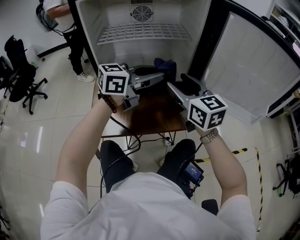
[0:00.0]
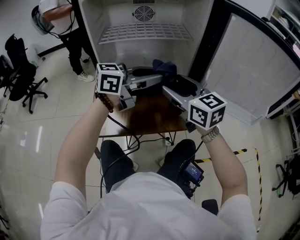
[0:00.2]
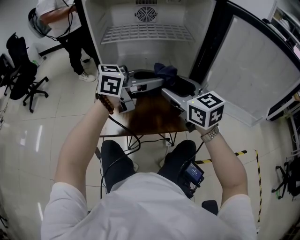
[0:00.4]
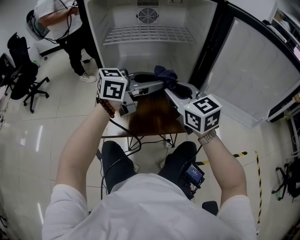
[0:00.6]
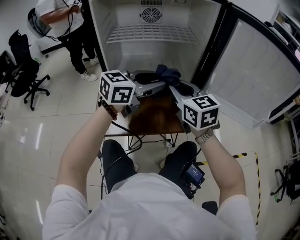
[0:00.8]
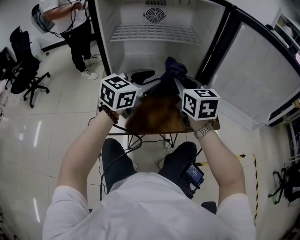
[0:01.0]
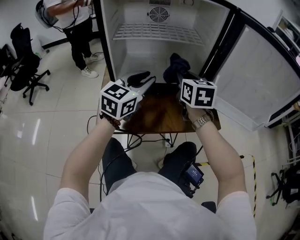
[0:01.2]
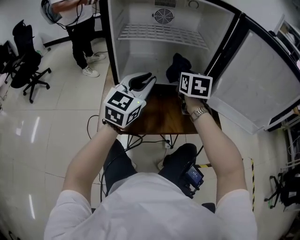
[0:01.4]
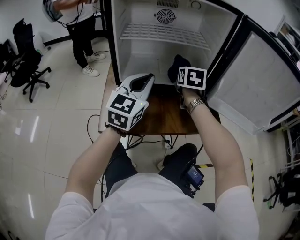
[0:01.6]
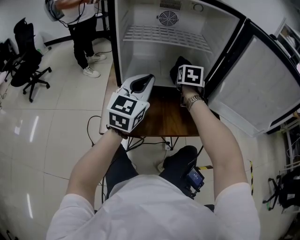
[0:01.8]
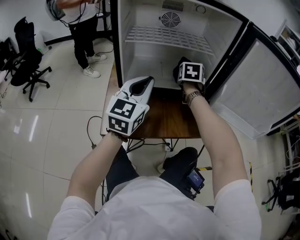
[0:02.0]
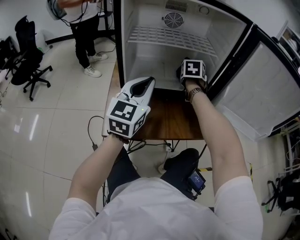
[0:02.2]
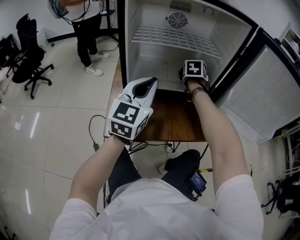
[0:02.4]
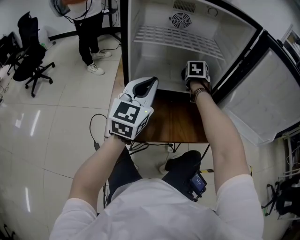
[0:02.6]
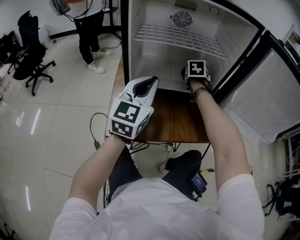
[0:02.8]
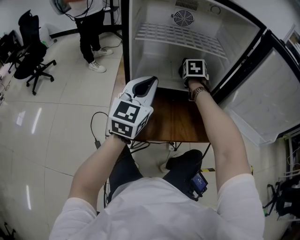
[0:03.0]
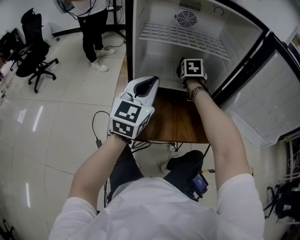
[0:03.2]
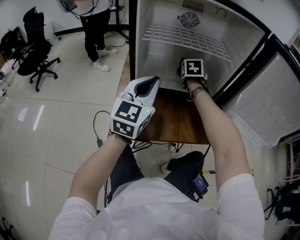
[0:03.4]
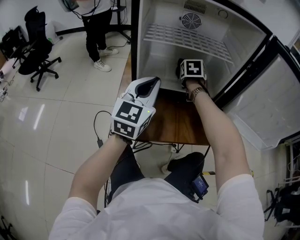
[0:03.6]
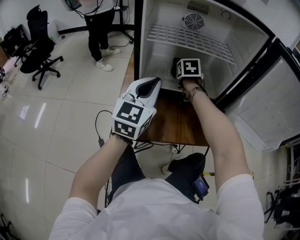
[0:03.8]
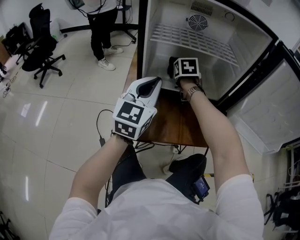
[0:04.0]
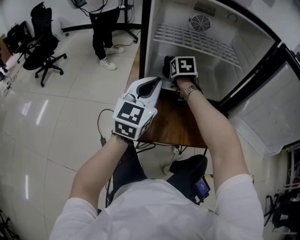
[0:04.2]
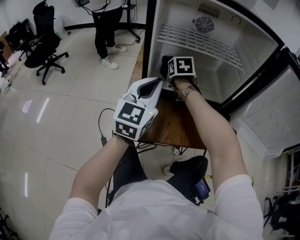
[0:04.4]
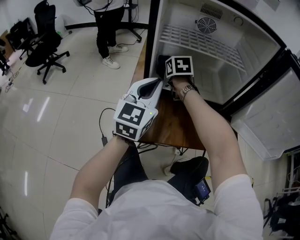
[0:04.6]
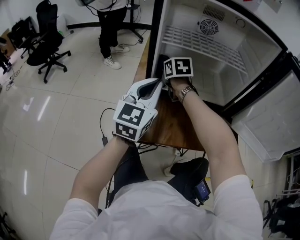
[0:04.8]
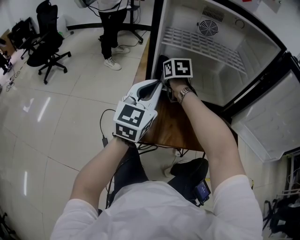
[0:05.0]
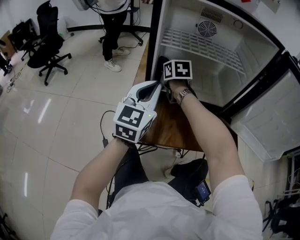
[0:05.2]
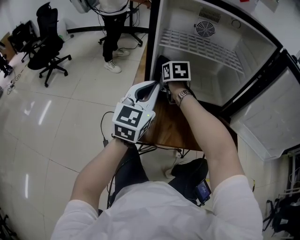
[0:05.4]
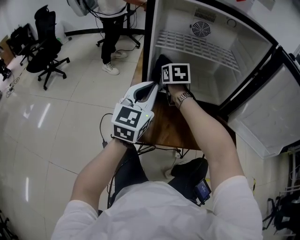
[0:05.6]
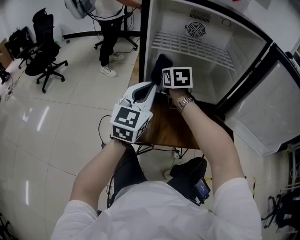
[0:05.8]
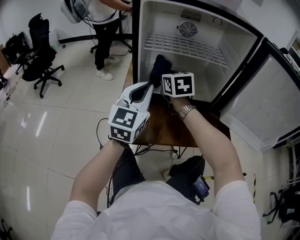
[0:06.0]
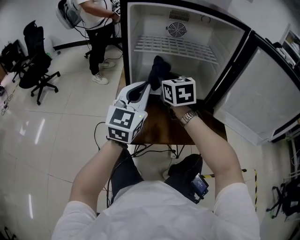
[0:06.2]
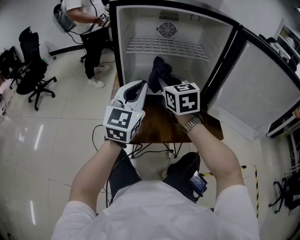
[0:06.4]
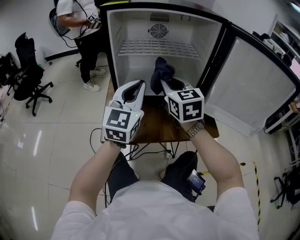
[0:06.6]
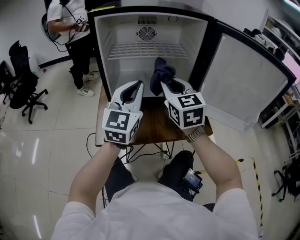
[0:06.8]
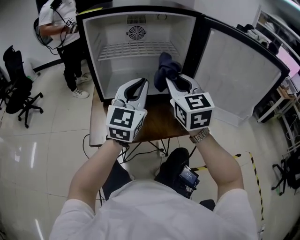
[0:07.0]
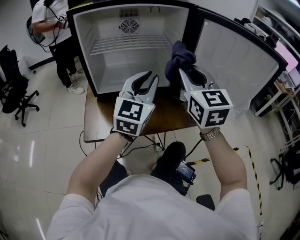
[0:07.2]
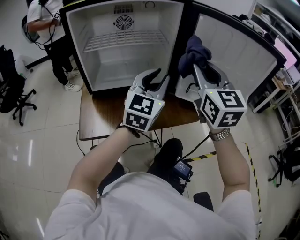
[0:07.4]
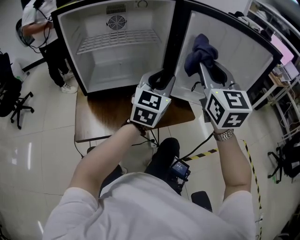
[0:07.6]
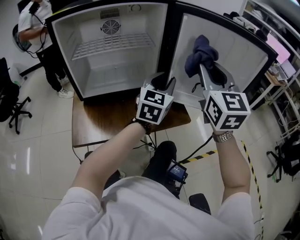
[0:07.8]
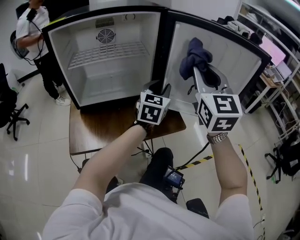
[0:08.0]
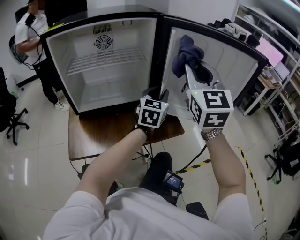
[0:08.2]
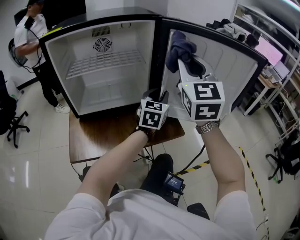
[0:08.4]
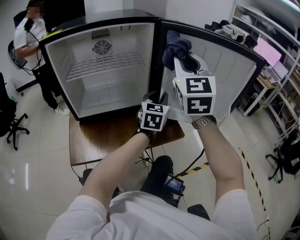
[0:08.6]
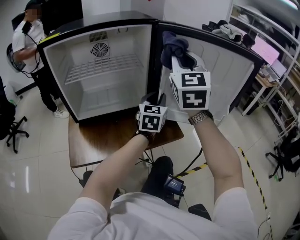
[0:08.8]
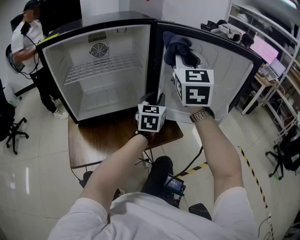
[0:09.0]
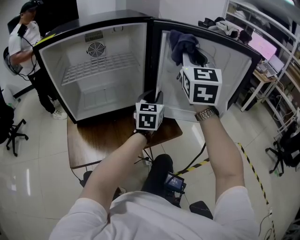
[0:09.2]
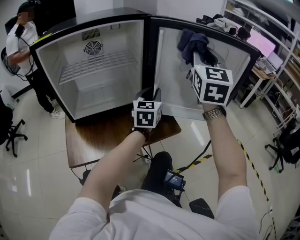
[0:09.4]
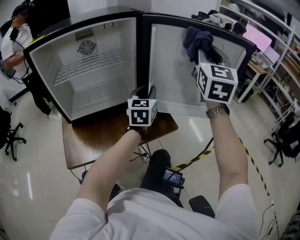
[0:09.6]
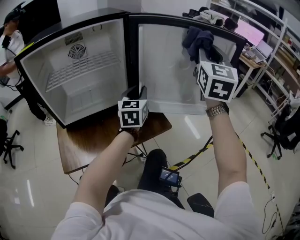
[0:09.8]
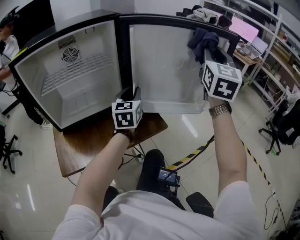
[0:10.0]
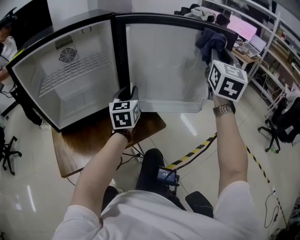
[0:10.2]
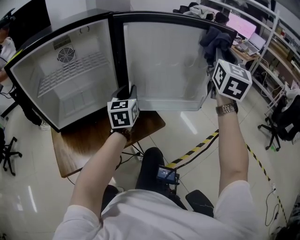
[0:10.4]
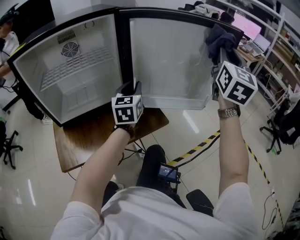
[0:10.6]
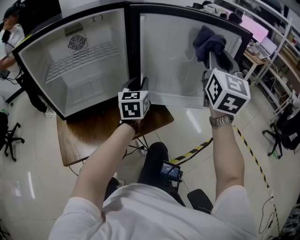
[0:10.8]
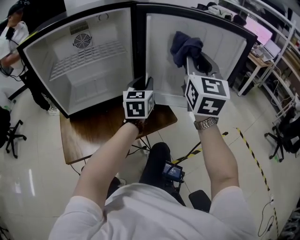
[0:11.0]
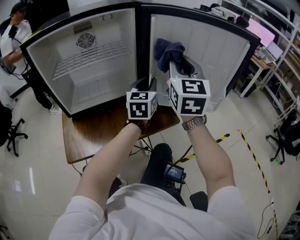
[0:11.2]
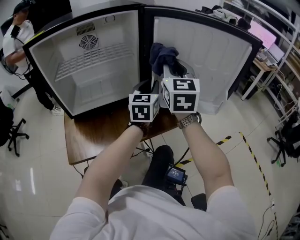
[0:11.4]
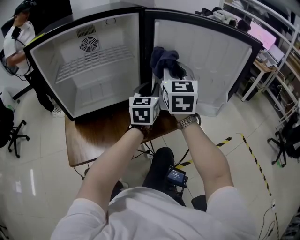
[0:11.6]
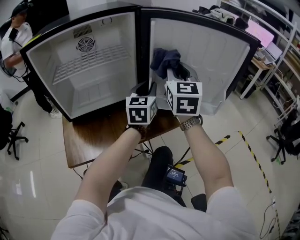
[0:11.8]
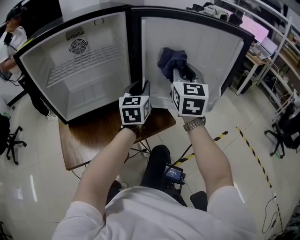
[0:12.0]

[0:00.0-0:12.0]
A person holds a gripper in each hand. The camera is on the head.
0:00.0 to 0:01.6: The right gripper travels forward and downward by about 15 cm, swivels some 30 degrees, and closes up. The left gripper is displaced to the left by some 10 cm, rotates approximately 50 degrees, and opens, then closes again.
0:01.6 to 0:03.0: The right gripper moves forward, about 10 cm.
0:03.0 to 0:04.4: The right gripper is displaced to the left by some 15 cm.
0:04.4 to 0:06.0: The right gripper travels backward and upward by roughly 10 cm.
0:06.0 to 0:07.6: The left gripper is displaced to the right by roughly 30 cm, turns by roughly 20 degrees, and opens; the right gripper moves to the right, upward and backward, roughly 40 cm, and rotates some 40 degrees.
0:07.6 to 0:09.0: The right gripper goes approximately 10 cm forward and upward; the left gripper travels forward by roughly 10 cm.
0:09.0 to 0:10.4: The right gripper heads to the right, covering some 25 cm, and changes its angle by about 30 degrees.
0:10.4 to 0:12.0: The right gripper travels to the left and downward by approximately 20 cm, and changes its angle by roughly 20 degrees.

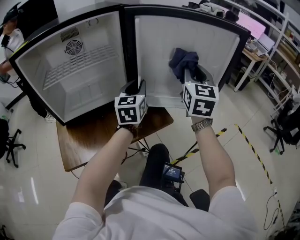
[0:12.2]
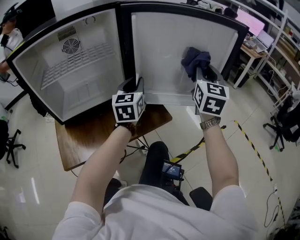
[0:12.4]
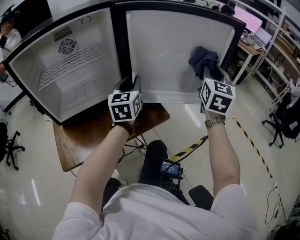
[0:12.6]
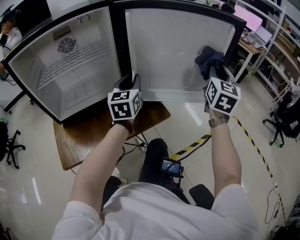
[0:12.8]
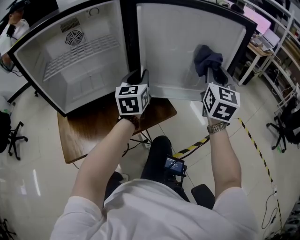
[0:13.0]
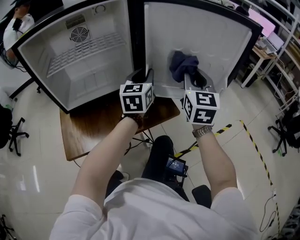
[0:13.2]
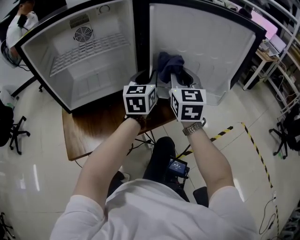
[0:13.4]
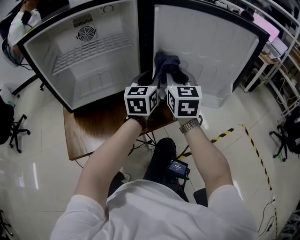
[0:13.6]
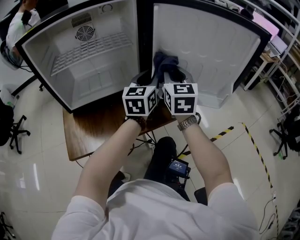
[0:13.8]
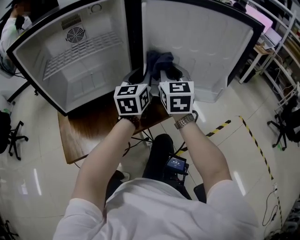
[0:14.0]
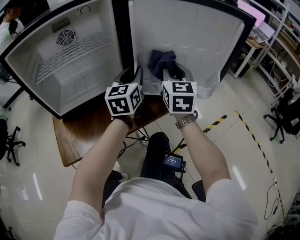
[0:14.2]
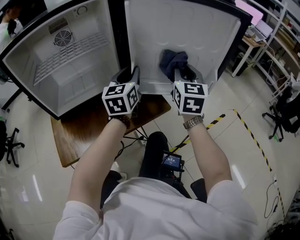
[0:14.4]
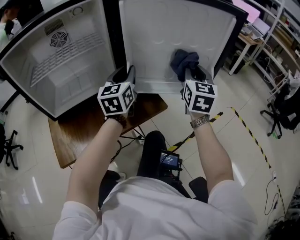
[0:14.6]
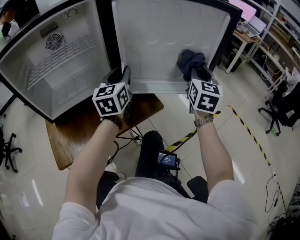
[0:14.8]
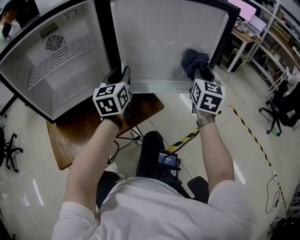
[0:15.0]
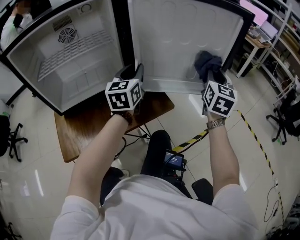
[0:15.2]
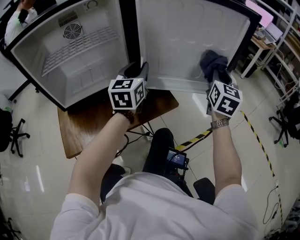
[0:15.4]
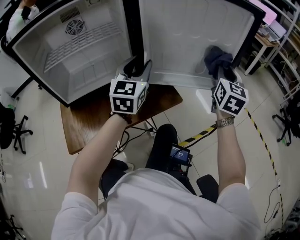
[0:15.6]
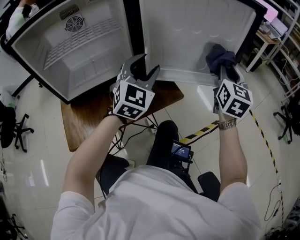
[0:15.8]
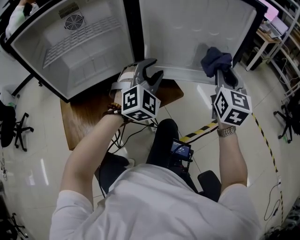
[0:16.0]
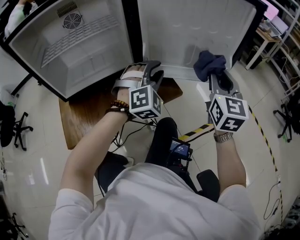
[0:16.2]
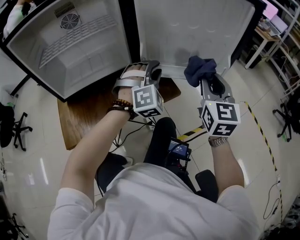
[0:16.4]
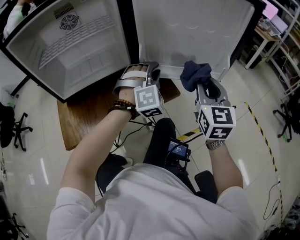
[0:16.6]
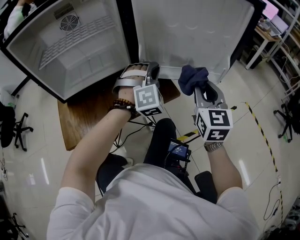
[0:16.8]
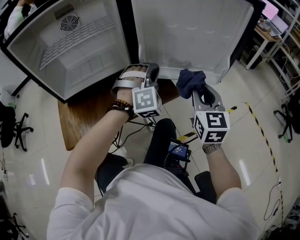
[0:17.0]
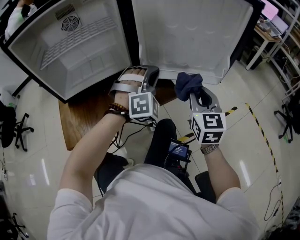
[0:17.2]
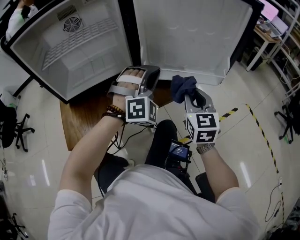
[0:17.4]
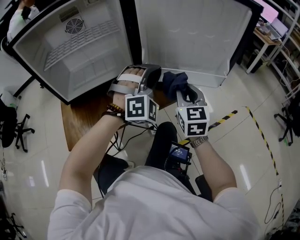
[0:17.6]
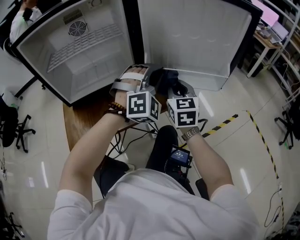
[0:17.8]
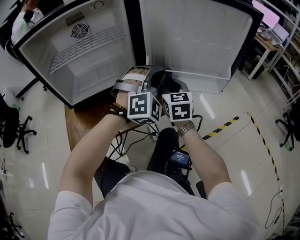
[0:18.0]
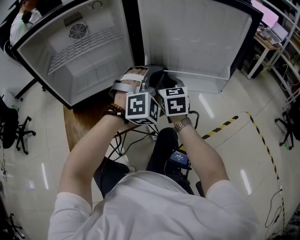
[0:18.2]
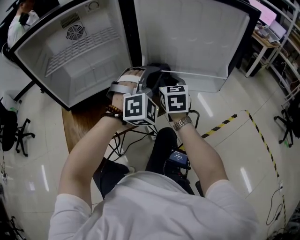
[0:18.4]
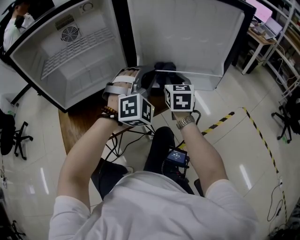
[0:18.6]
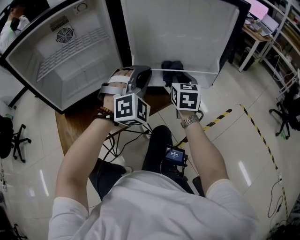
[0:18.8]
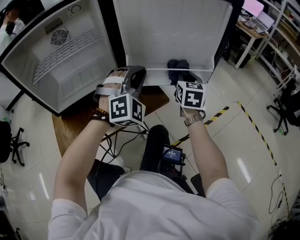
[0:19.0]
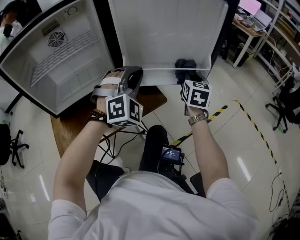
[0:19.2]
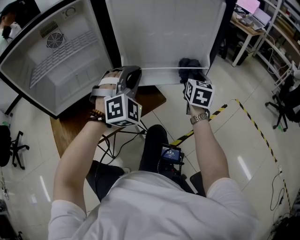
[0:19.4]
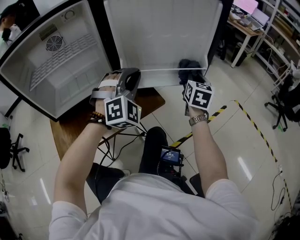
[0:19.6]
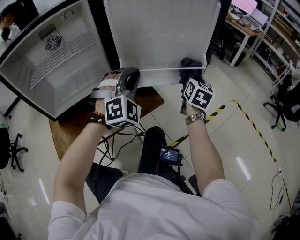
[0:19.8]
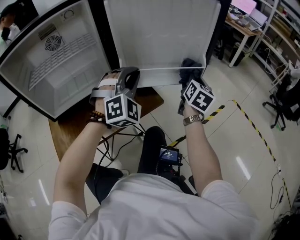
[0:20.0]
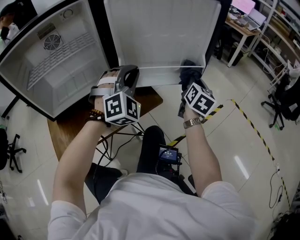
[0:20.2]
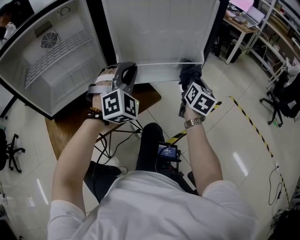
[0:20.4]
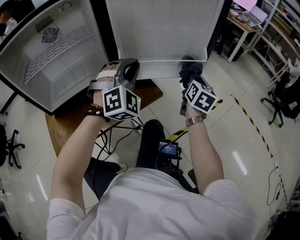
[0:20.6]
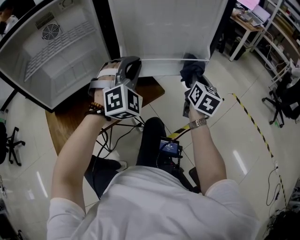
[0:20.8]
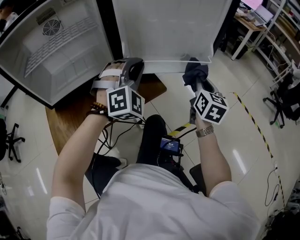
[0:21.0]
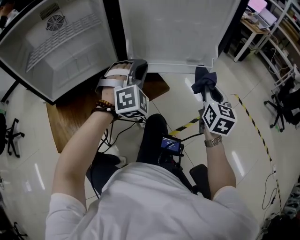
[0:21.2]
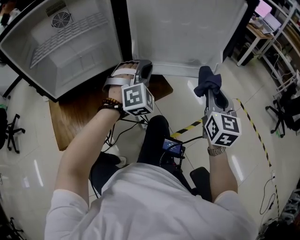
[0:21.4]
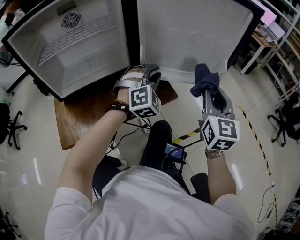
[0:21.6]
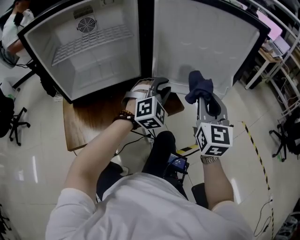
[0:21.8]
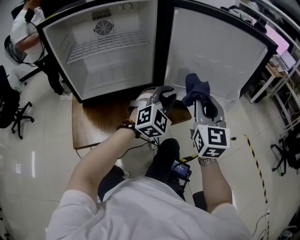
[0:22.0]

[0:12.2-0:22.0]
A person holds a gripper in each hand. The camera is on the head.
0:12.2 to 0:13.6: The right gripper goes approximately 15 cm to the left and downward.
0:13.6 to 0:15.0: The right gripper moves to the right, roughly 20 cm, and turns by approximately 20 degrees.
0:15.0 to 0:16.4: The left gripper shifts about 10 cm to the right and downward, and rotates around the line of its fingers by about 80 degrees, clockwise from behind, while the right gripper is displaced backward and to the left by roughly 10 cm.
0:16.4 to 0:17.8: The right gripper travels to the left and downward by some 15 cm. The left gripper is displaced upward by roughly 5 cm.
0:17.8 to 0:19.2: The right gripper moves to the right, some 15 cm, and changes its angle by approximately 20 degrees.
0:19.2 to 0:20.6: The right gripper shifts by some 5 cm.
0:20.6 to 0:22.0: The left gripper swivels about 20 degrees, while the right gripper moves to the left, upward and backward, about 25 cm, and changes its angle by roughly 40 degrees.

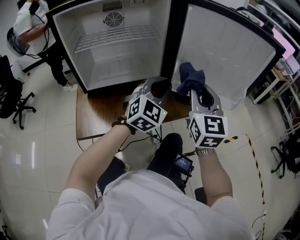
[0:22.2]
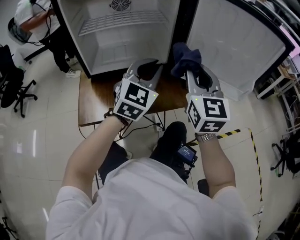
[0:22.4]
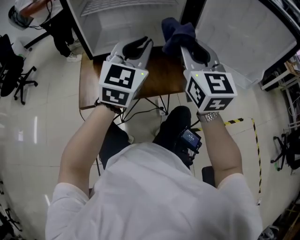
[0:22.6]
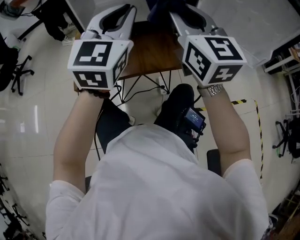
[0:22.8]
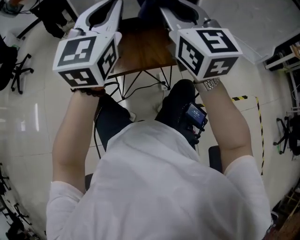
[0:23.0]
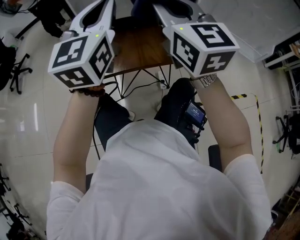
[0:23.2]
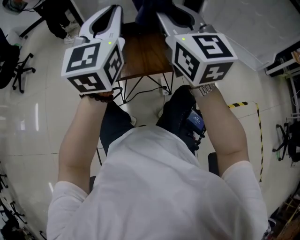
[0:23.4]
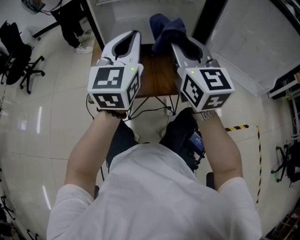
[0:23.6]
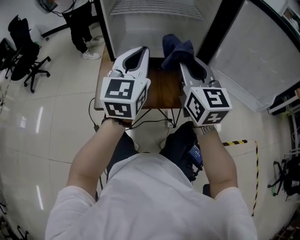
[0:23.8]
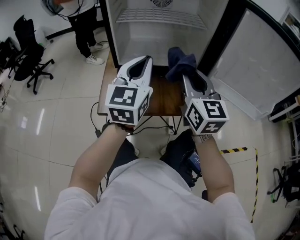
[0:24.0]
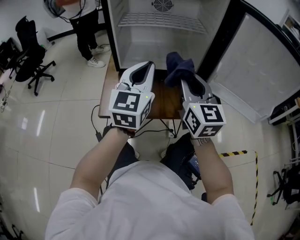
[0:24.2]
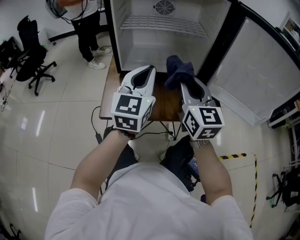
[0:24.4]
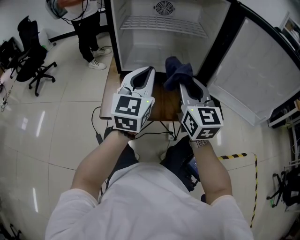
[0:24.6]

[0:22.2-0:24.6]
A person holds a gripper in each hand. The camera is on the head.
0:22.2 to 0:23.4: The left gripper changes place by approximately 25 cm, and changes its angle by approximately 40 degrees; the right gripper shifts by some 20 cm, and swivels some 30 degrees.
0:23.4 to 0:24.6: The right gripper moves downward, about 5 cm.
